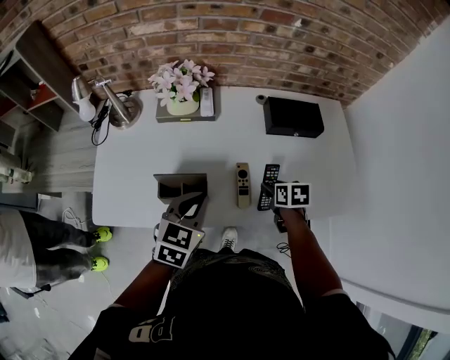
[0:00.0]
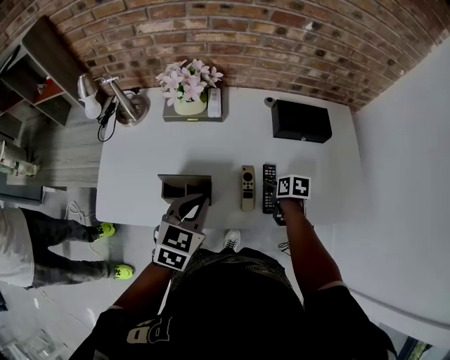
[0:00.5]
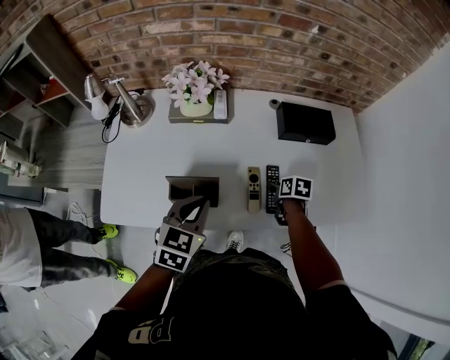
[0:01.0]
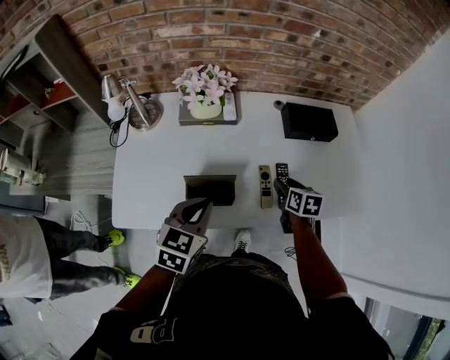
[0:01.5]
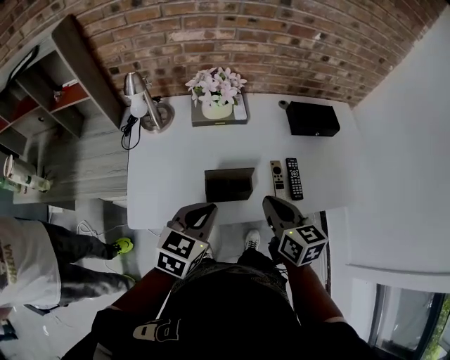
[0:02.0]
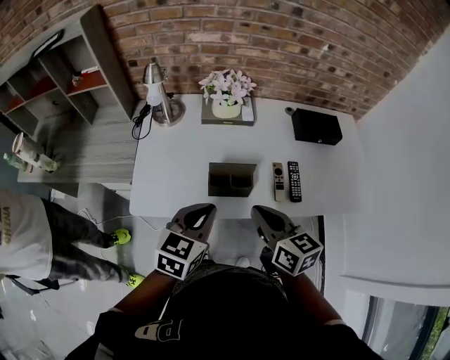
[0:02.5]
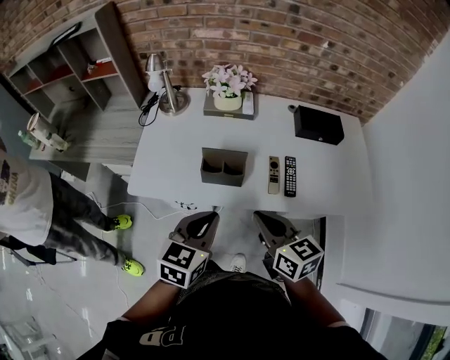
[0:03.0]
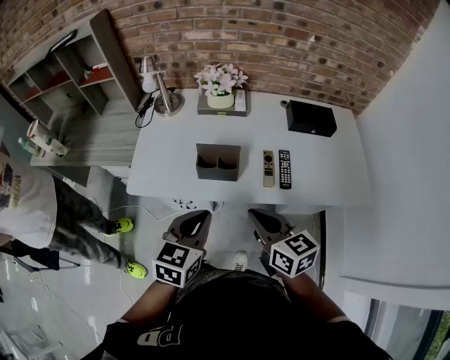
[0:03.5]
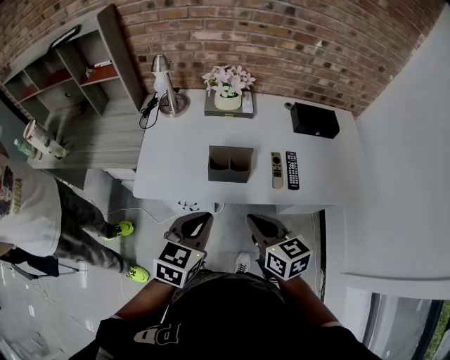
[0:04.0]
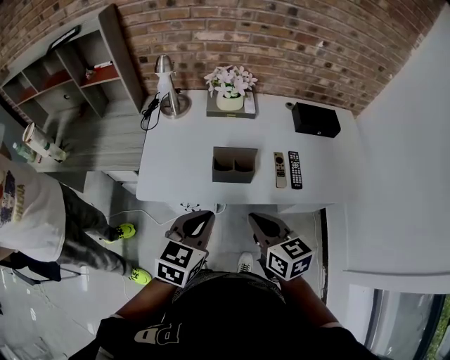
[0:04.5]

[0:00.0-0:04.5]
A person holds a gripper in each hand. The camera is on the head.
0:00.0 to 0:02.0: The right gripper goes roughly 30 cm to the left, upward and backward, points its fingers approximately 30 degrees further upward, and closes, while the left gripper heads to the left and backward, covering about 15 cm.
0:02.0 to 0:04.5: The left gripper heads backward, covering roughly 10 cm, while the right gripper moves backward and to the left, about 15 cm.

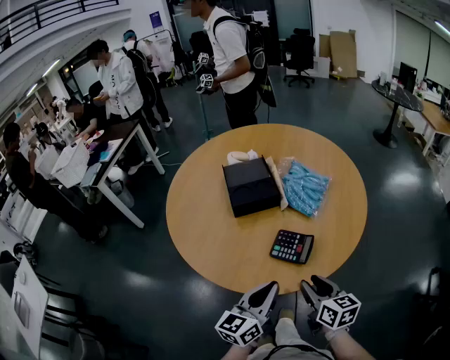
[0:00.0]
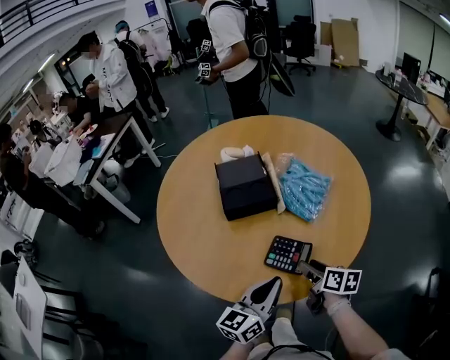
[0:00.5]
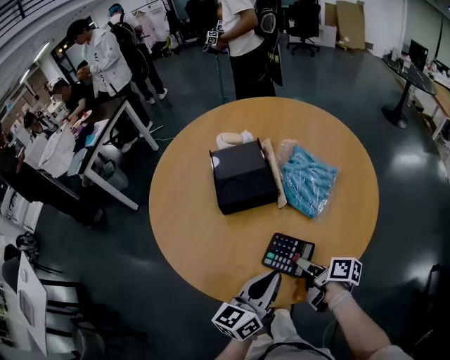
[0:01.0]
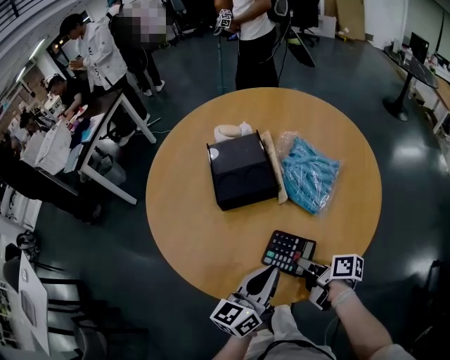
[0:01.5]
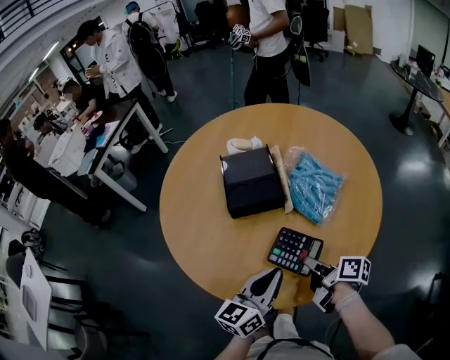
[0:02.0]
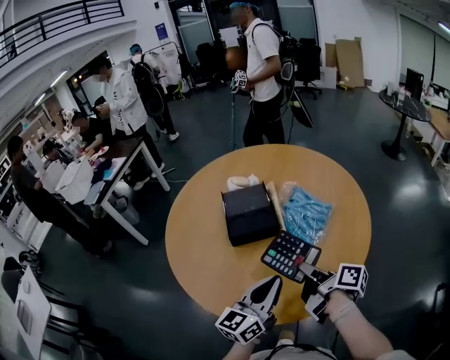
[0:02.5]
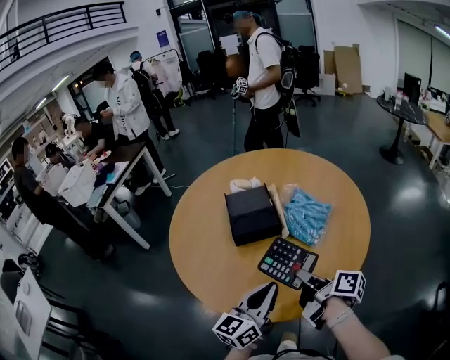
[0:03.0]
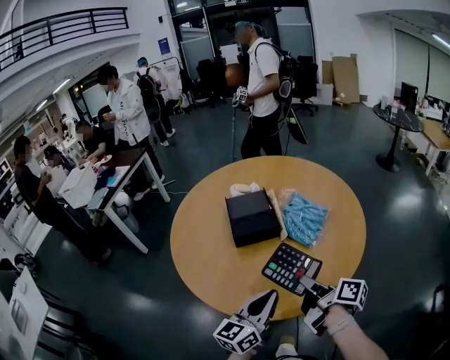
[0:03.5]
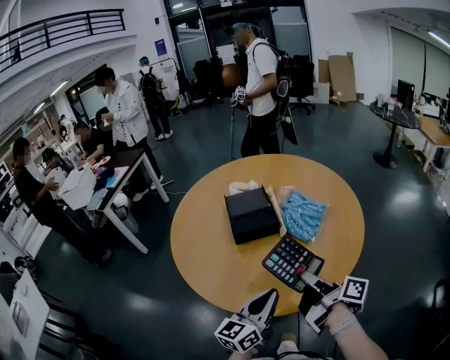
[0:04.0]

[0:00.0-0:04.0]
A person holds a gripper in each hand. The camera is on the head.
0:00.0 to 0:02.0: The left gripper ends up about 15 cm from where it was.
0:02.0 to 0:04.0: The left gripper ends up roughly 10 cm from where it was.

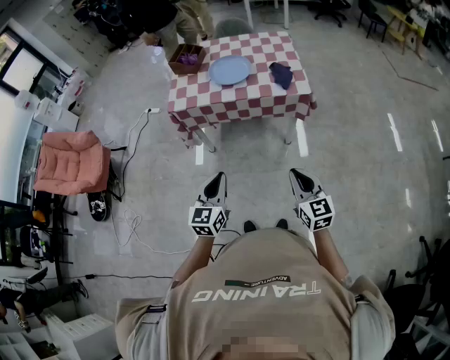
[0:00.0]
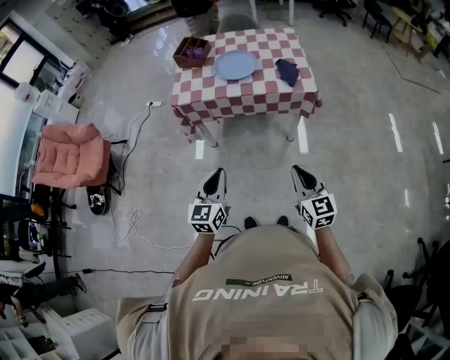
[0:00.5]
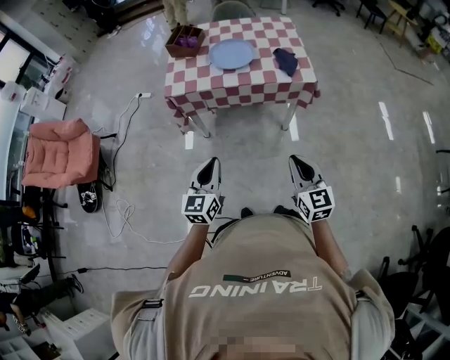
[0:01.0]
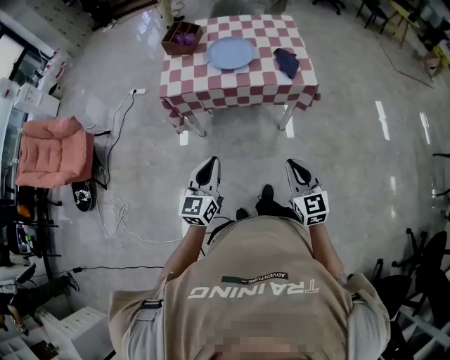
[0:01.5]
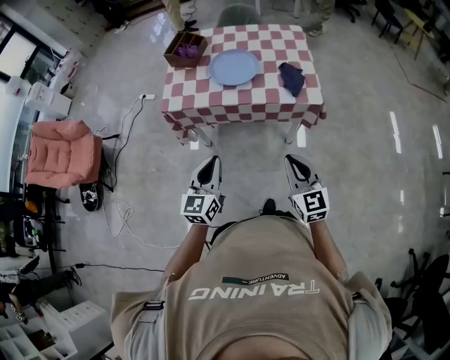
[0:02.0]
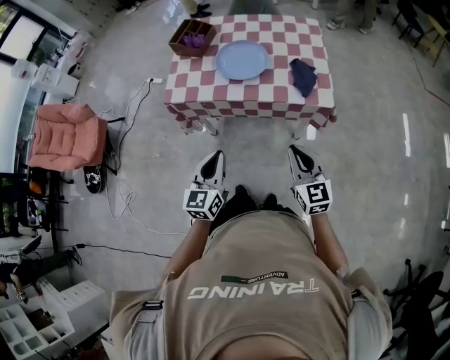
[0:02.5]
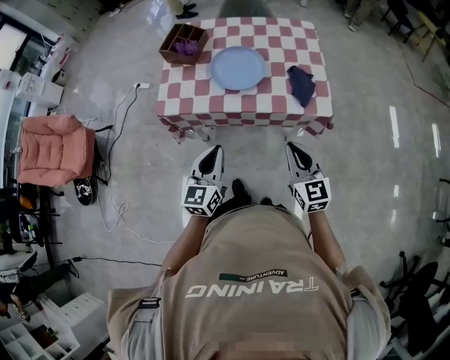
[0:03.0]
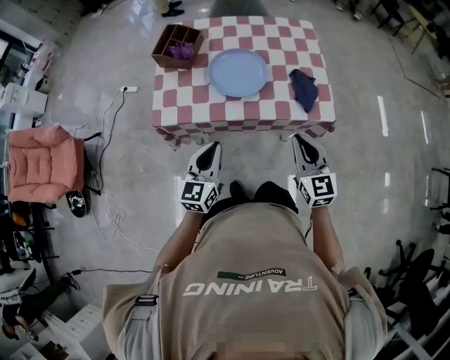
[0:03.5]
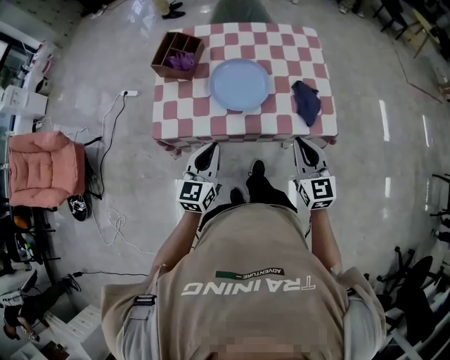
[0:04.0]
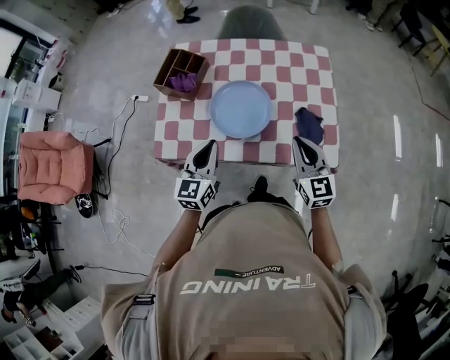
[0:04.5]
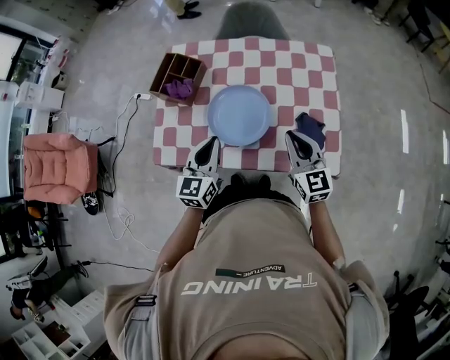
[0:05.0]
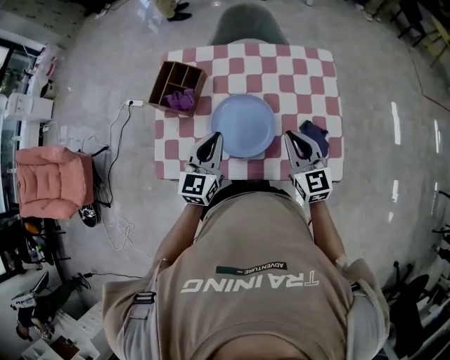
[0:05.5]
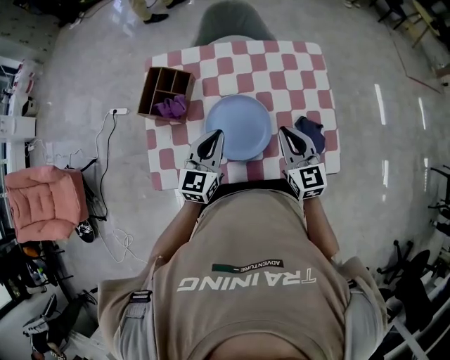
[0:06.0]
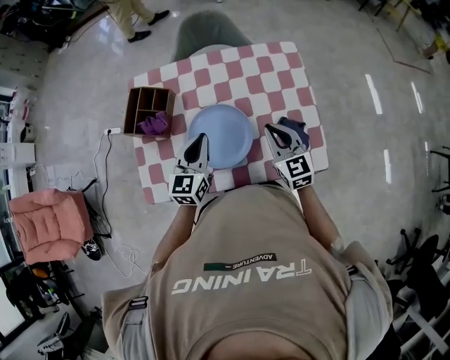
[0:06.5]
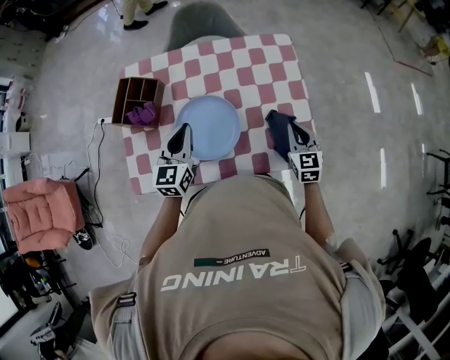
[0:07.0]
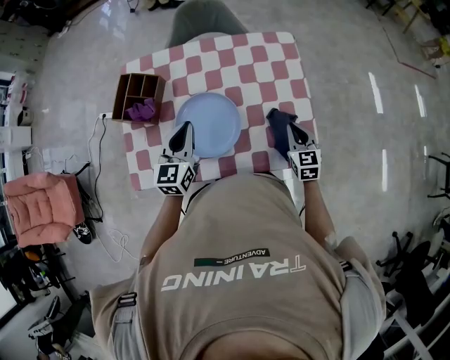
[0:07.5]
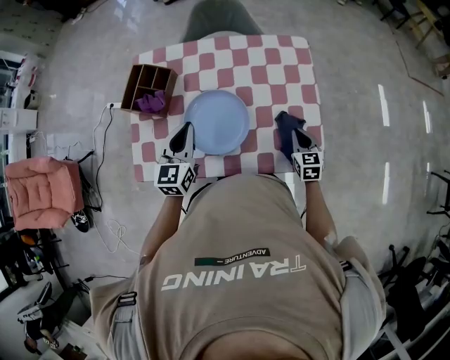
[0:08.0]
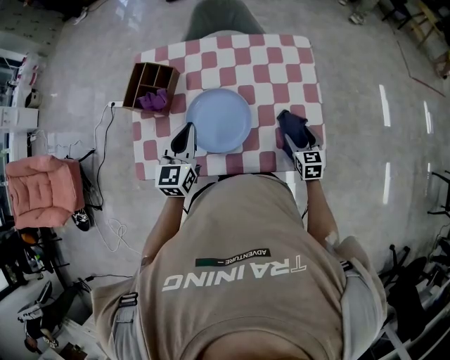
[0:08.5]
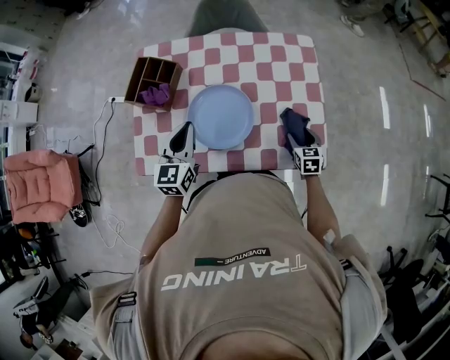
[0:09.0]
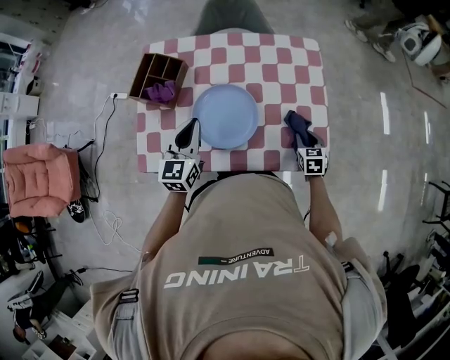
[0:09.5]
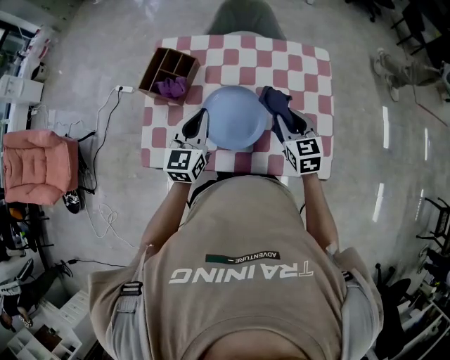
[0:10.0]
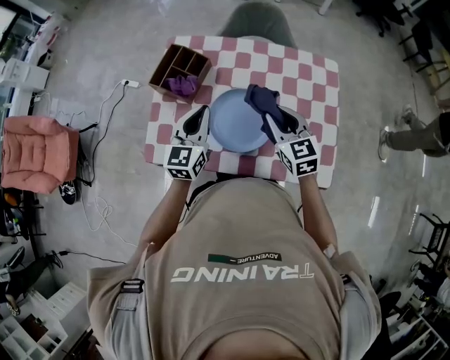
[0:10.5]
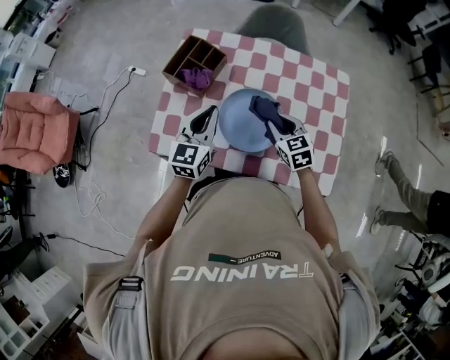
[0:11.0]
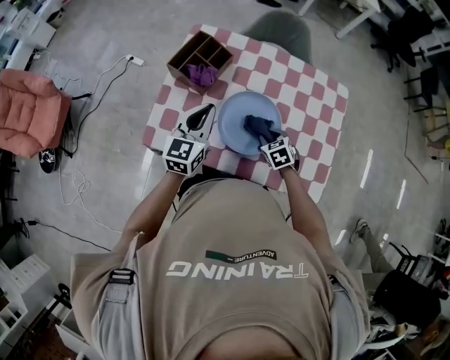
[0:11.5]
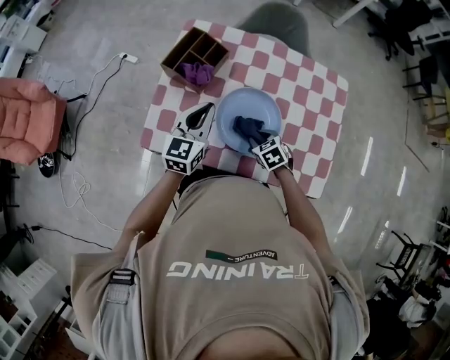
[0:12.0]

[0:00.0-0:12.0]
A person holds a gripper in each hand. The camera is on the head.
0:00.0 to 0:02.0: Both grippers travel together forward, some 15 cm.
0:02.0 to 0:04.0: Both grippers travel together forward, some 25 cm.
0:04.0 to 0:06.0: Both grippers travel together forward, roughly 25 cm.
0:06.0 to 0:08.0: The right gripper is displaced to the right and downward by about 25 cm, and changes its angle by some 20 degrees.
0:08.0 to 0:10.0: The right gripper goes roughly 20 cm to the left and upward, and opens, then closes again.
0:10.0 to 0:12.0: The left gripper travels to the left by about 5 cm; the right gripper travels downward and to the left by approximately 20 cm, and tilts its fingers some 30 degrees downward.

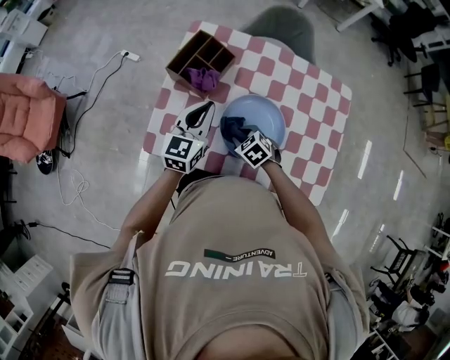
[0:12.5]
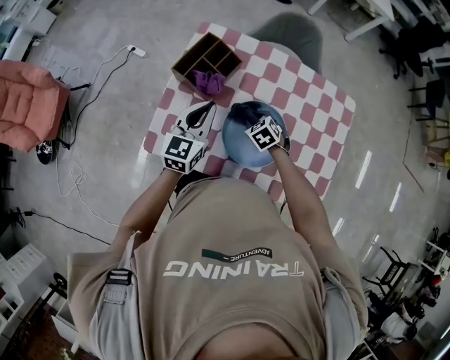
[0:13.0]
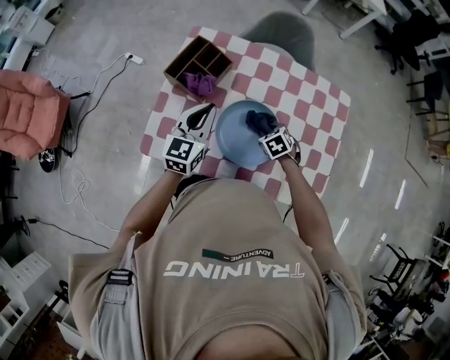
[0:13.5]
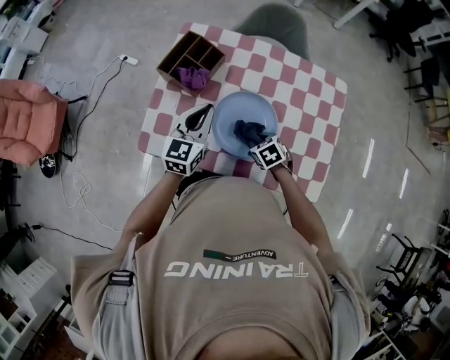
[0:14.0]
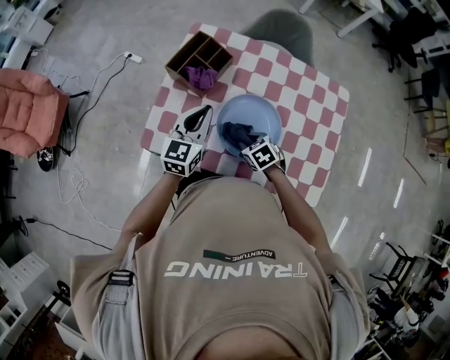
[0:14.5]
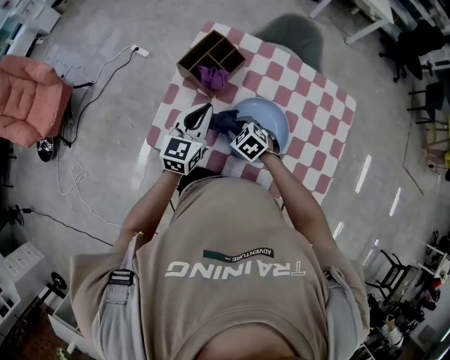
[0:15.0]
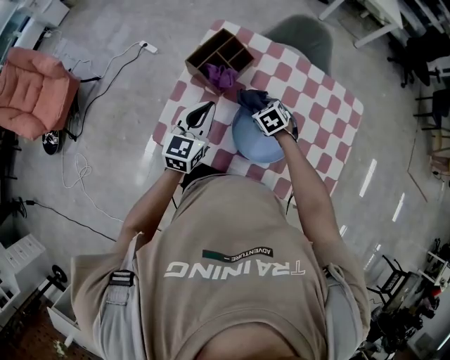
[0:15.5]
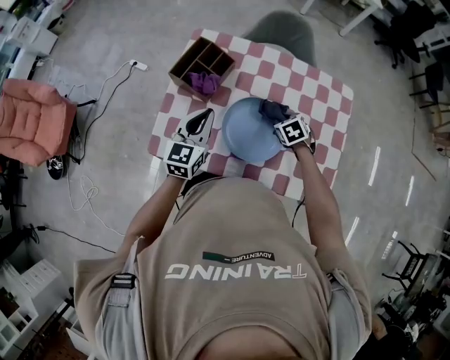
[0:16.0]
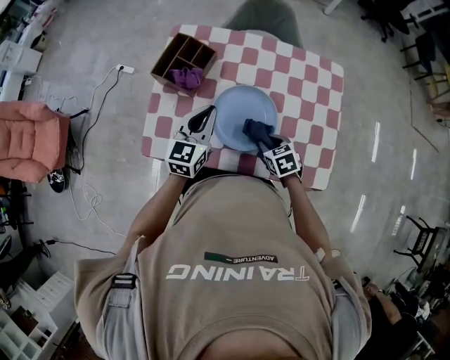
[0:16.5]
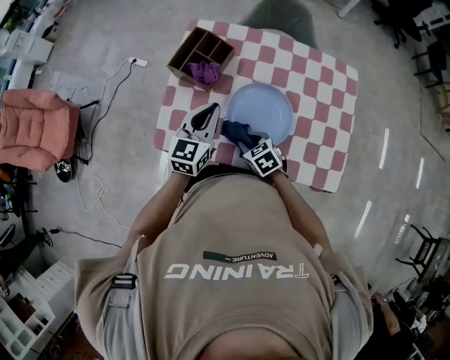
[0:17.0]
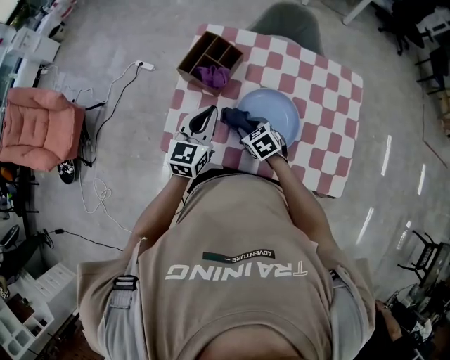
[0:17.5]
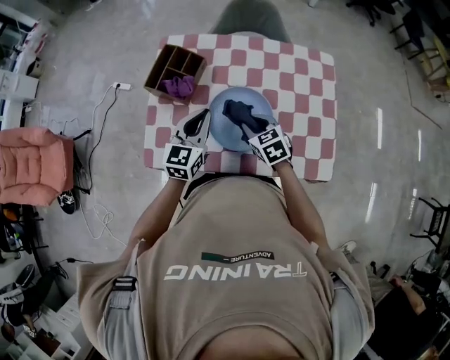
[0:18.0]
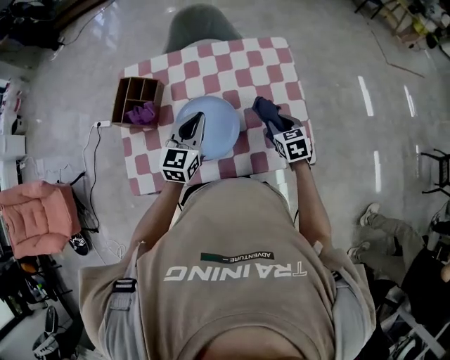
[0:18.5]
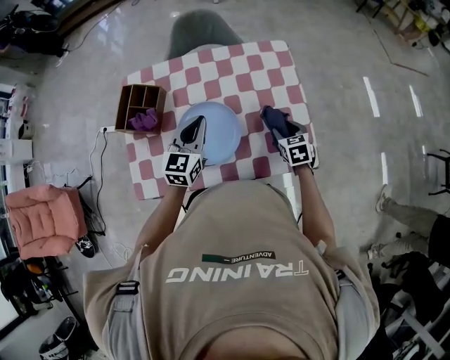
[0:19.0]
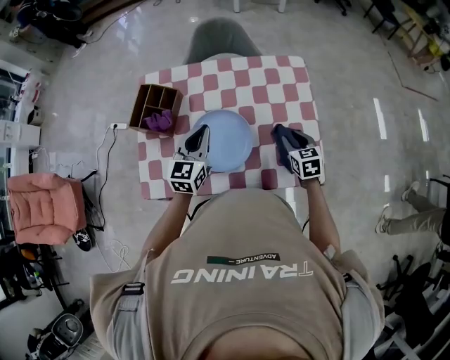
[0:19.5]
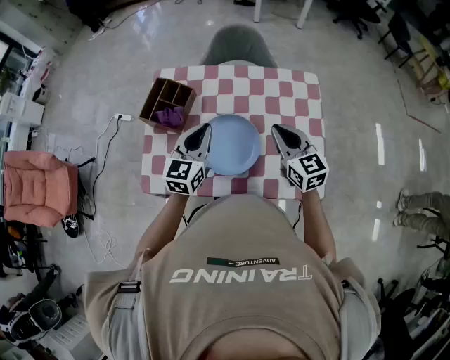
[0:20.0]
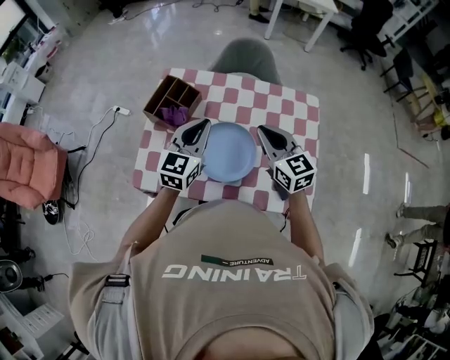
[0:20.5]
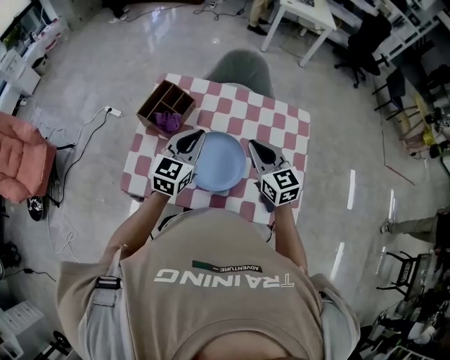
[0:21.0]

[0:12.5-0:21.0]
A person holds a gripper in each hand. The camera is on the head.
0:12.5 to 0:14.5: The right gripper goes to the right and returns, roughly 15 cm each way.
0:14.5 to 0:16.5: The right gripper swings left and right, approximately 20 cm each way, with 2 reversals.
0:16.5 to 0:19.0: The right gripper ends up about 20 cm from where it was, and turns by approximately 30 degrees. The left gripper ends up approximately 15 cm from where it was.
0:19.0 to 0:21.0: The left gripper shifts some 10 cm to the left and upward; the right gripper heads upward and to the left, covering some 25 cm, tips its fingers upward by roughly 30 degrees, and closes.
